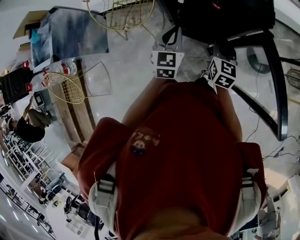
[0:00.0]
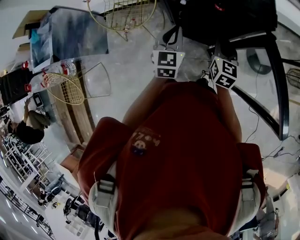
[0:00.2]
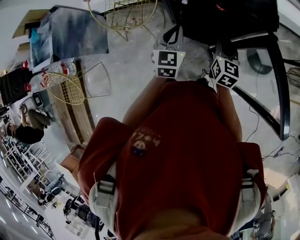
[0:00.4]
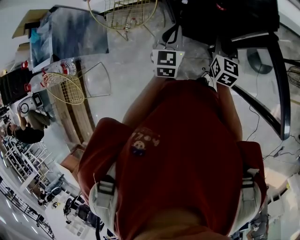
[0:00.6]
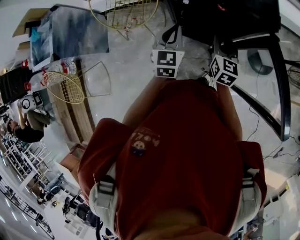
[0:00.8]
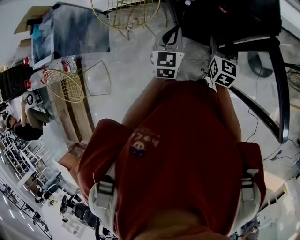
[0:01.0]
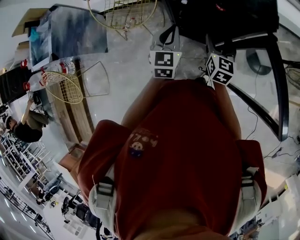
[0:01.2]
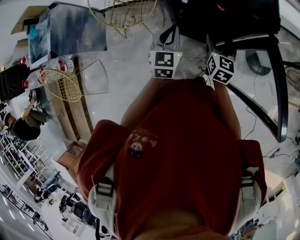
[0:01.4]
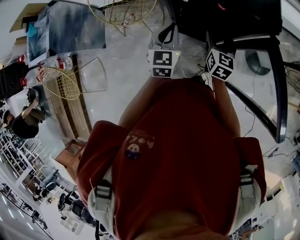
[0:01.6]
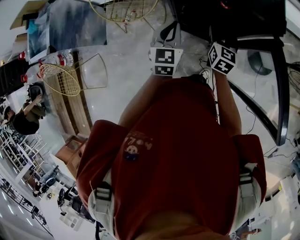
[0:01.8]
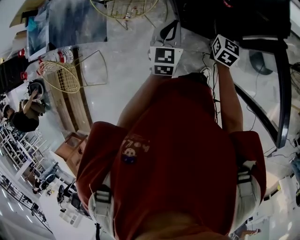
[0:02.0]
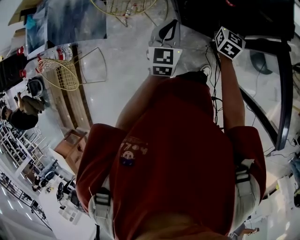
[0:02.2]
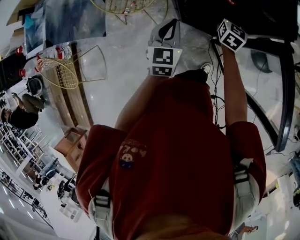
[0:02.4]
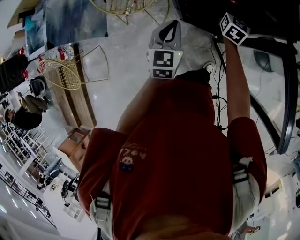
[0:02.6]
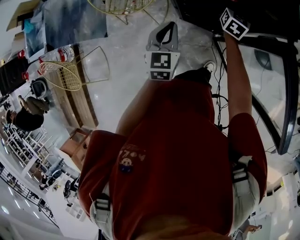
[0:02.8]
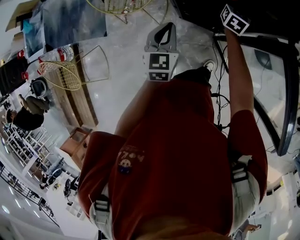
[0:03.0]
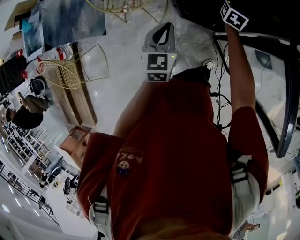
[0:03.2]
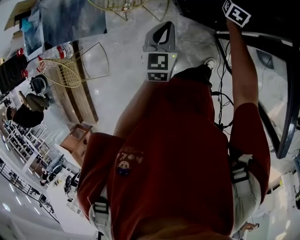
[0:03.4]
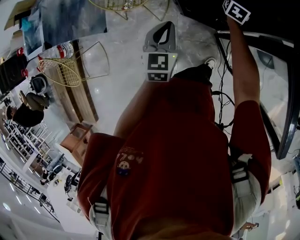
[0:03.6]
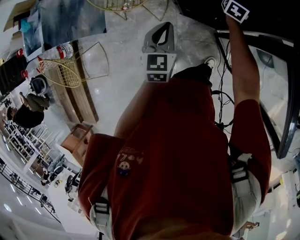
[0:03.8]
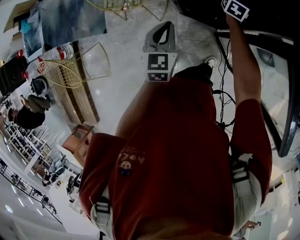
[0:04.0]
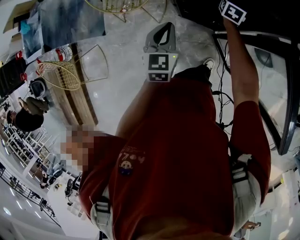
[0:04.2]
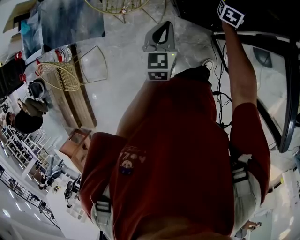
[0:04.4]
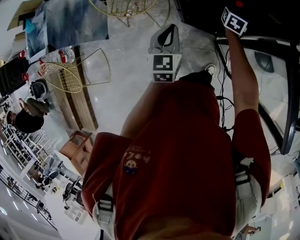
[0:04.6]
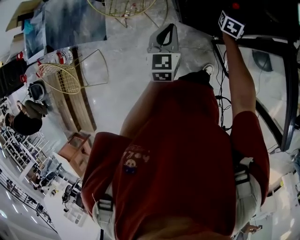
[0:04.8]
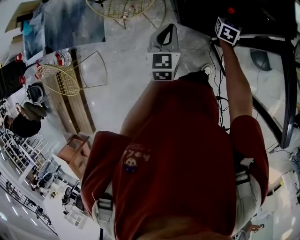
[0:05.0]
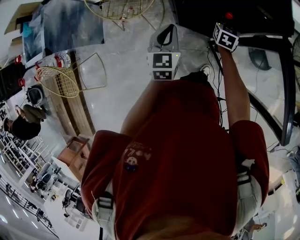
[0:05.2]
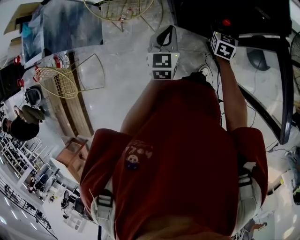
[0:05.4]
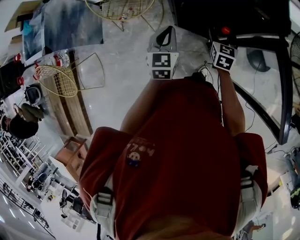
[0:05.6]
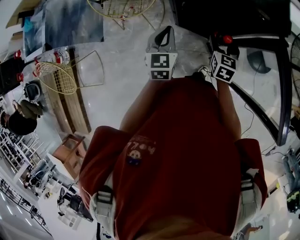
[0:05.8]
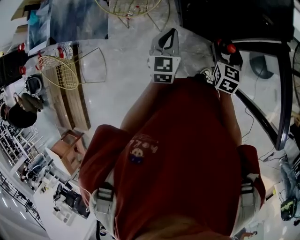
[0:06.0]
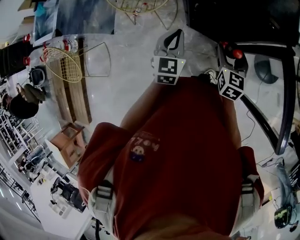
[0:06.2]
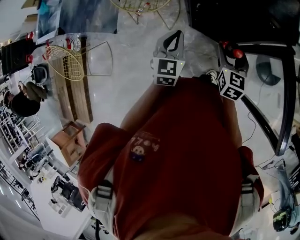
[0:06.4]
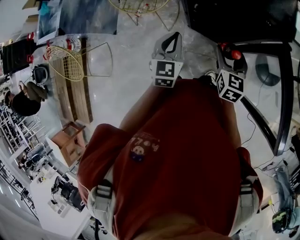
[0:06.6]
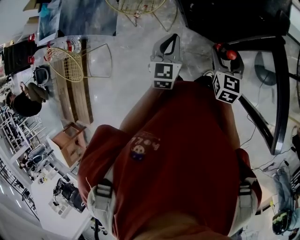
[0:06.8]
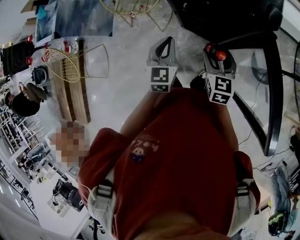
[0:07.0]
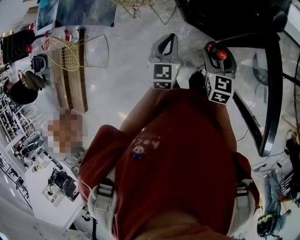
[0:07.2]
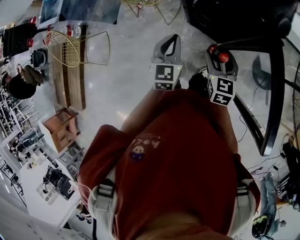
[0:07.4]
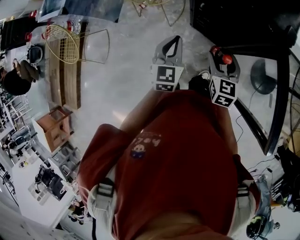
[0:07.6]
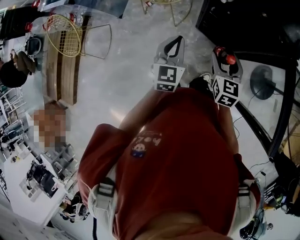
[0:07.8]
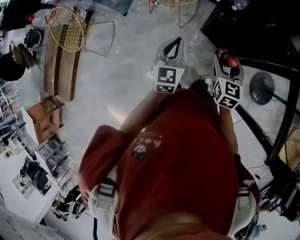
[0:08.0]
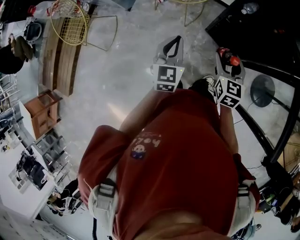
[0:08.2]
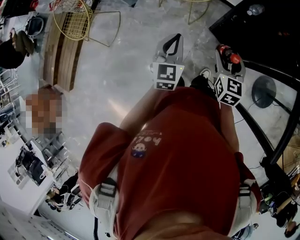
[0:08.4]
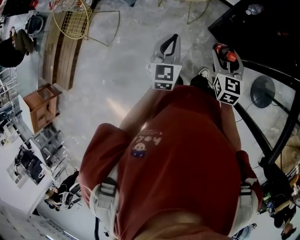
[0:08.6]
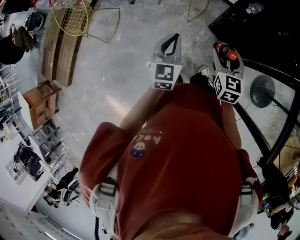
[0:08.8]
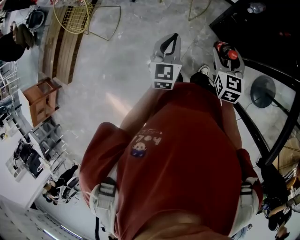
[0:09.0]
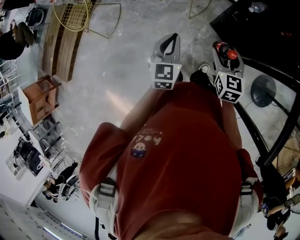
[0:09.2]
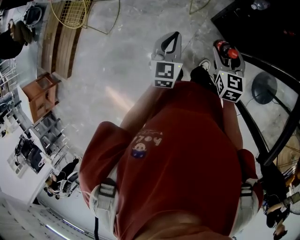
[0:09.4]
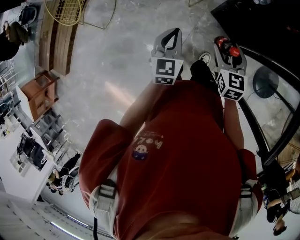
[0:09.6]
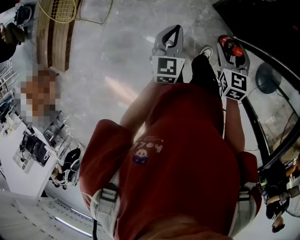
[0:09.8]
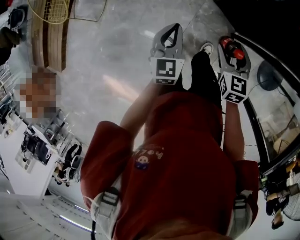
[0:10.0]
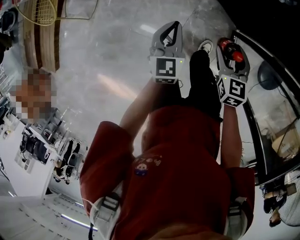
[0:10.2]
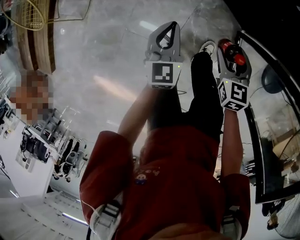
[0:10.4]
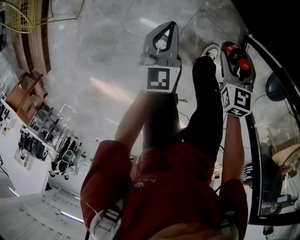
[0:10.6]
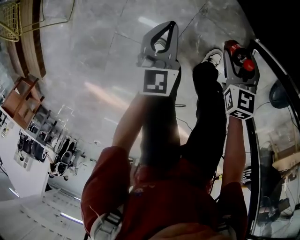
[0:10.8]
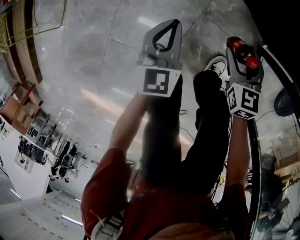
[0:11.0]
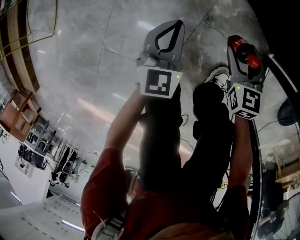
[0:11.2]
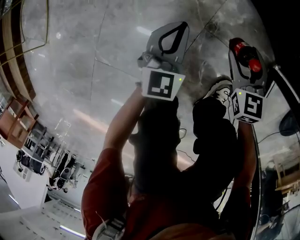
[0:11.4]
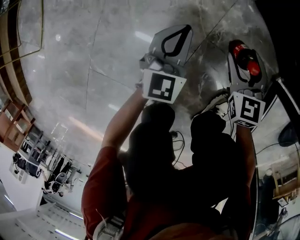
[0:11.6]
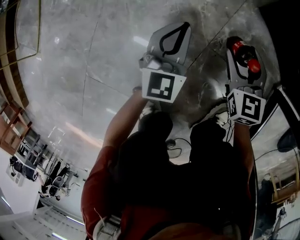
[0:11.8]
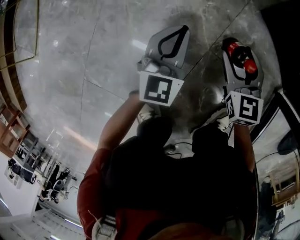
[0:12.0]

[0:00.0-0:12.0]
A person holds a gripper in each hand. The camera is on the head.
0:00.0 to 0:01.6: The right gripper opens.
0:01.6 to 0:03.0: The right gripper heads forward and downward, covering approximately 20 cm. Meanwhile the left gripper shifts by roughly 5 cm.
0:03.0 to 0:04.4: There are only small adjustments of the grippers.
0:04.4 to 0:06.0: The right gripper moves backward, approximately 25 cm.
0:06.0 to 0:07.6: The right gripper travels backward and upward by roughly 10 cm. The left gripper goes approximately 10 cm backward.
0:07.6 to 0:09.0: Both grippers travel together to the left, roughly 15 cm.
0:09.0 to 0:10.4: Both grippers travel together downward, approximately 25 cm.
0:10.4 to 0:12.0: The grippers both shift downward by about 50 cm.

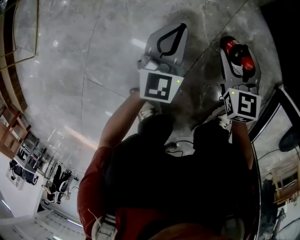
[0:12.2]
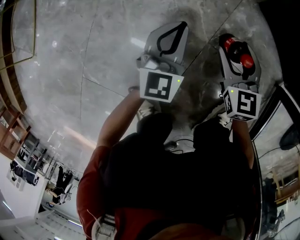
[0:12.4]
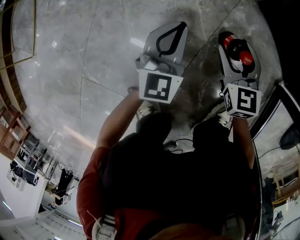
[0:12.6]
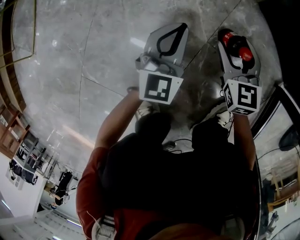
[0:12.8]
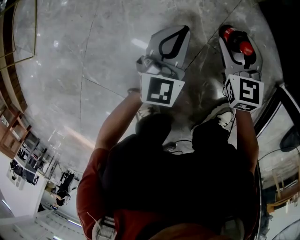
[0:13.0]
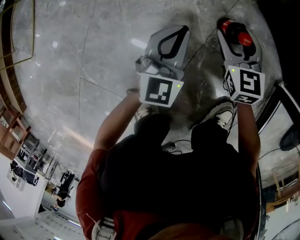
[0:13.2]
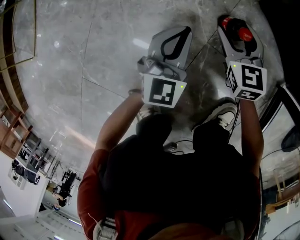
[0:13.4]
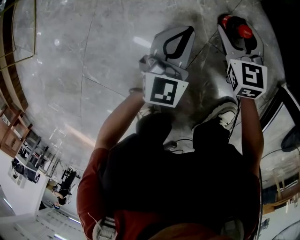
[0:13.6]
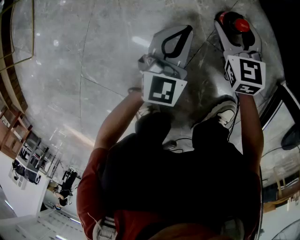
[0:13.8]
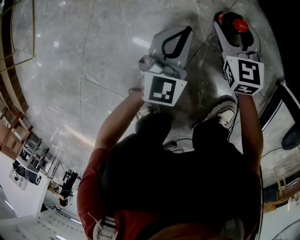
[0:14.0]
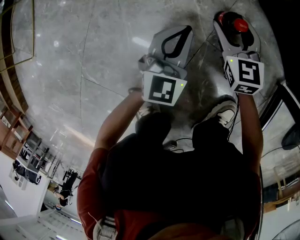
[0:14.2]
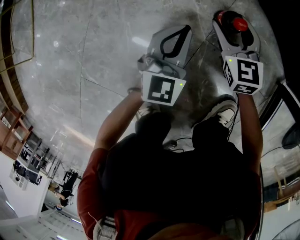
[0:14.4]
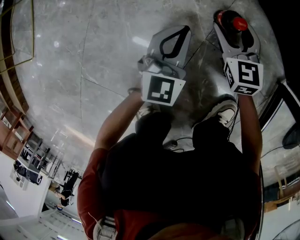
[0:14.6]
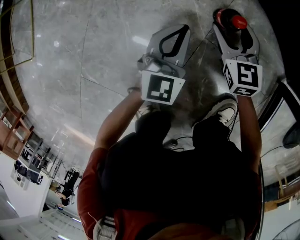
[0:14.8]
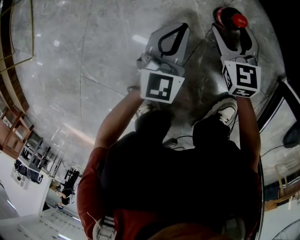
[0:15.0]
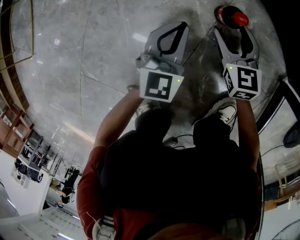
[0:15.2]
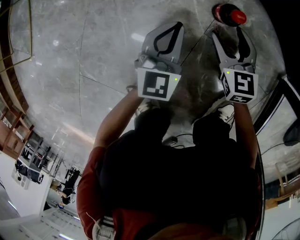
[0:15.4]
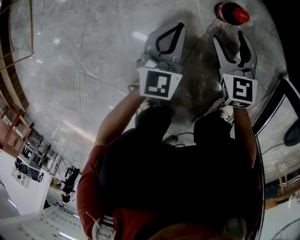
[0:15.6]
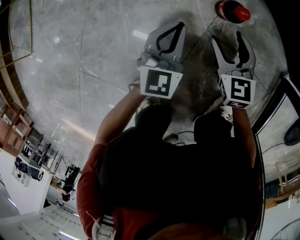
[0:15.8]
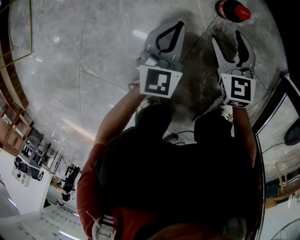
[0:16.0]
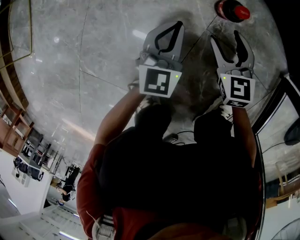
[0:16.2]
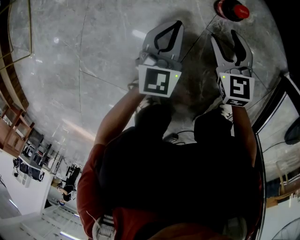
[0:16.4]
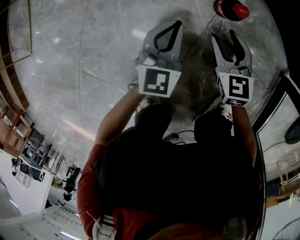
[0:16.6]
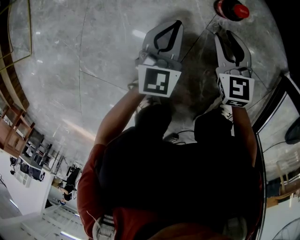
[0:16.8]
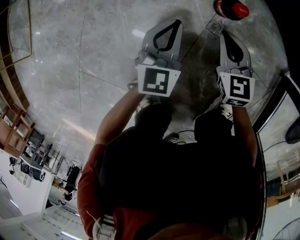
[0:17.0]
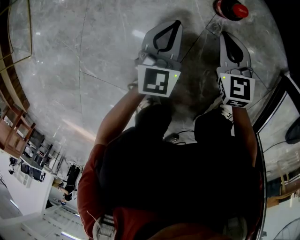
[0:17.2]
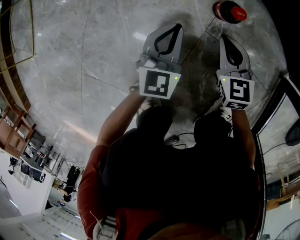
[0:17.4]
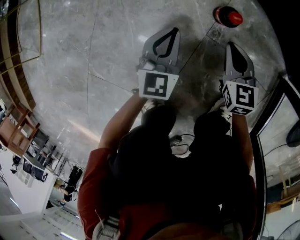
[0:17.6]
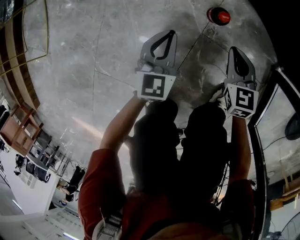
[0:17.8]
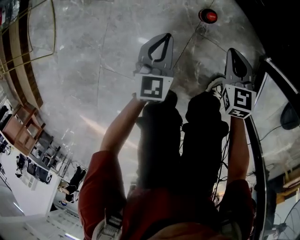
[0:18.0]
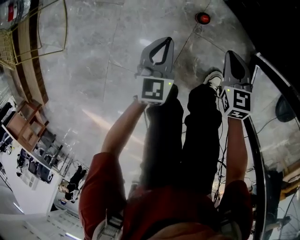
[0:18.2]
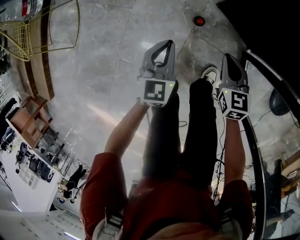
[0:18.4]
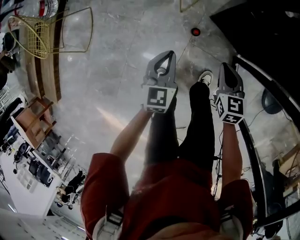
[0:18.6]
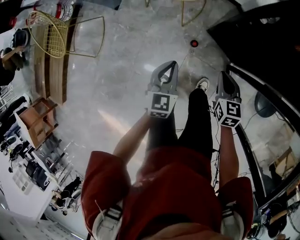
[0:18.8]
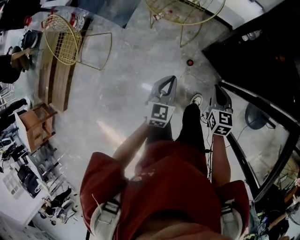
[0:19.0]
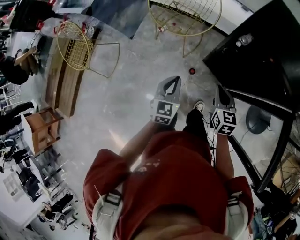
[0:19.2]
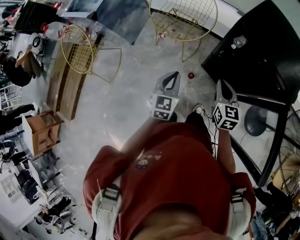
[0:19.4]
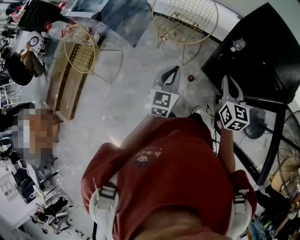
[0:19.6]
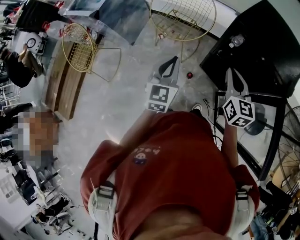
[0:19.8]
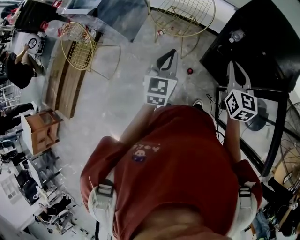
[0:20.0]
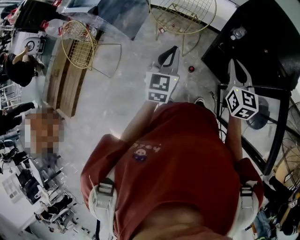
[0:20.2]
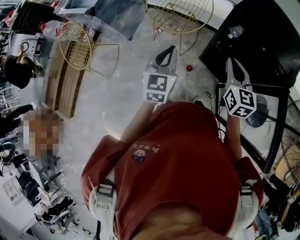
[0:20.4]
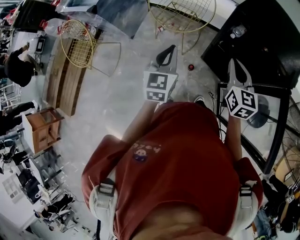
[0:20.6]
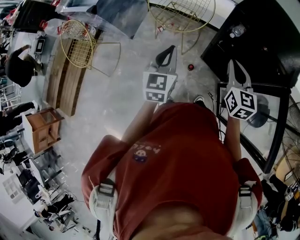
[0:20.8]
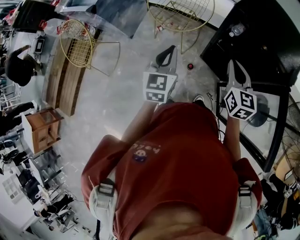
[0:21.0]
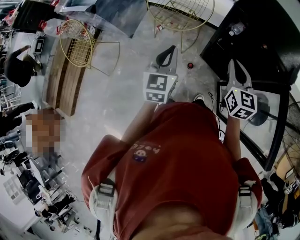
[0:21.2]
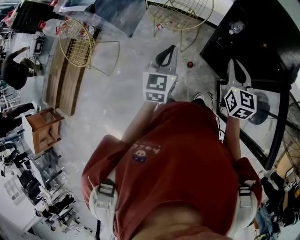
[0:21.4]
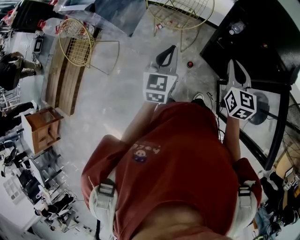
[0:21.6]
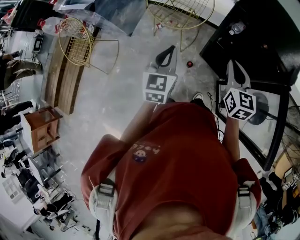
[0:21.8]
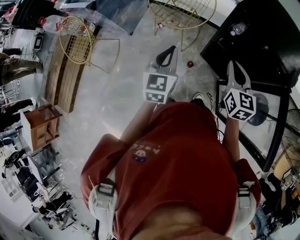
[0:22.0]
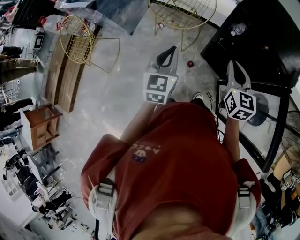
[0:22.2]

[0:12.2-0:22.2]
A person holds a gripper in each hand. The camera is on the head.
0:12.2 to 0:13.6: The right gripper goes roughly 5 cm forward.
0:13.6 to 0:15.0: The grippers stay close to where they were, moving slightly.
0:15.0 to 0:16.4: The right gripper moves backward, some 5 cm.
0:16.4 to 0:18.0: The two grippers go roughly 15 cm upward. The right gripper closes.
0:18.0 to 0:19.4: Both grippers move upward, about 70 cm.
0:19.4 to 0:20.8: Both grippers travel together upward, approximately 10 cm.
0:20.8 to 0:22.2: There are only small adjustments of the grippers.

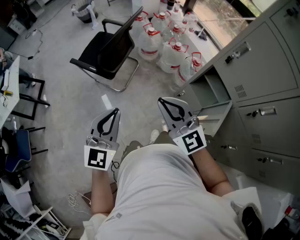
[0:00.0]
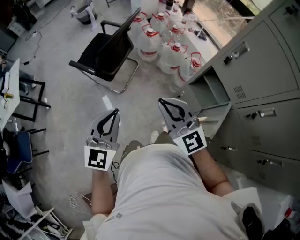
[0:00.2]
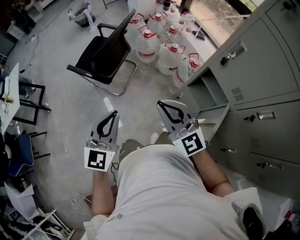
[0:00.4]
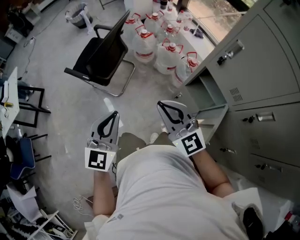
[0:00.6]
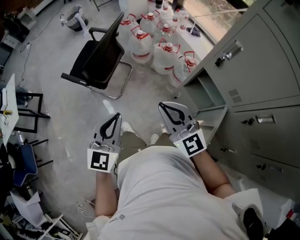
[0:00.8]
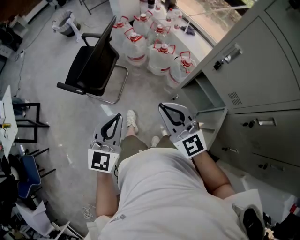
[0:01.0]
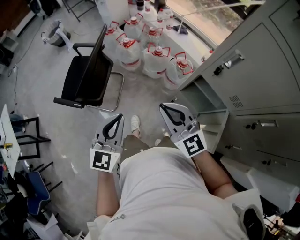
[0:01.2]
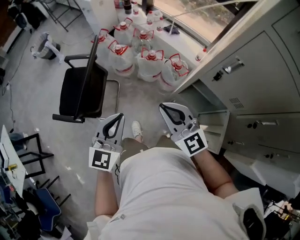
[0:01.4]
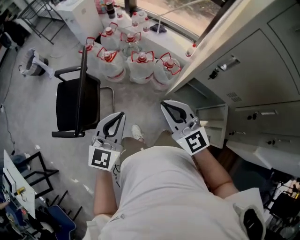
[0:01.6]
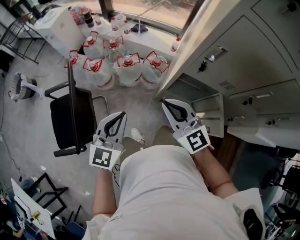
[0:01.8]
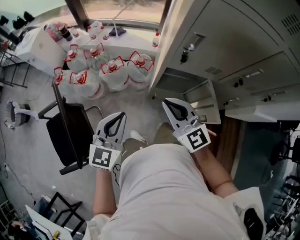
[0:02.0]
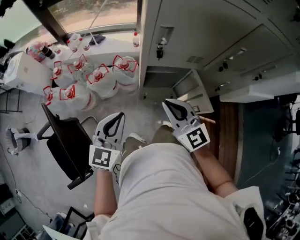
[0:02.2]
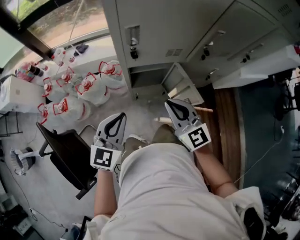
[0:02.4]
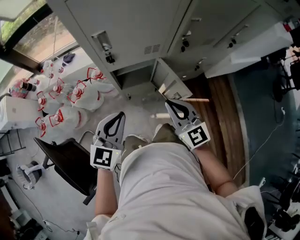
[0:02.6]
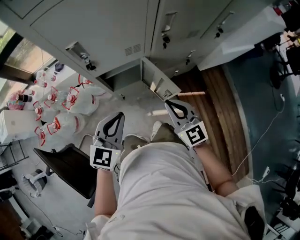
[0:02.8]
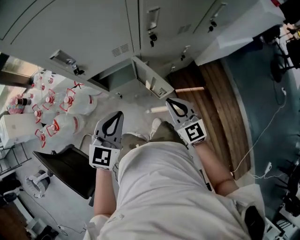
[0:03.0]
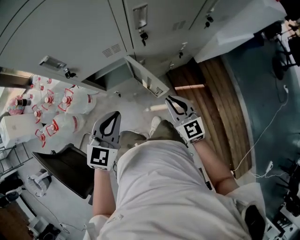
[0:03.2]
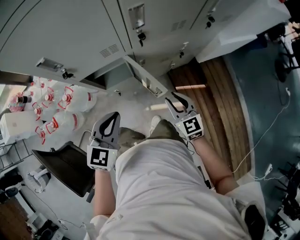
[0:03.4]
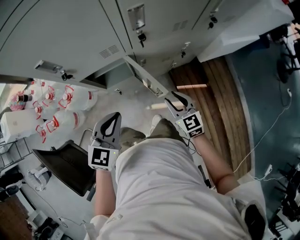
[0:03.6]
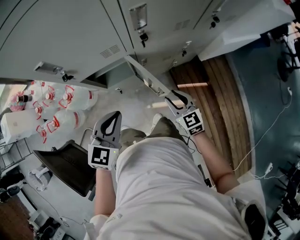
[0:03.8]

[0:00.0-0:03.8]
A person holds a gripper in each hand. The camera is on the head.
0:00.0 to 0:01.2: Both grippers travel together forward and to the right, roughly 20 cm.
0:01.2 to 0:02.6: The right gripper shifts by about 20 cm, and changes its angle by some 70 degrees, while the left gripper shifts by some 20 cm, and turns by approximately 70 degrees.
0:02.6 to 0:03.8: The right gripper goes about 20 cm to the right and downward, changes its angle by some 20 degrees, and opens up, while the left gripper moves to the right, approximately 10 cm.